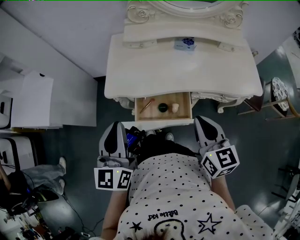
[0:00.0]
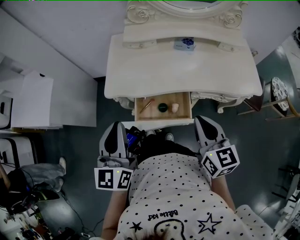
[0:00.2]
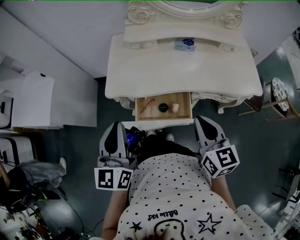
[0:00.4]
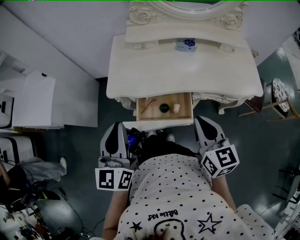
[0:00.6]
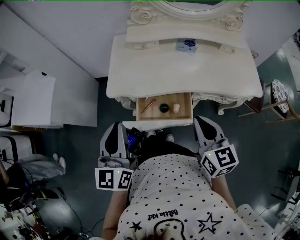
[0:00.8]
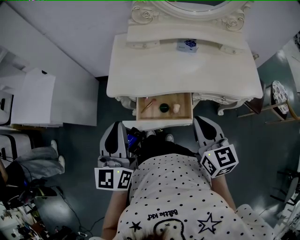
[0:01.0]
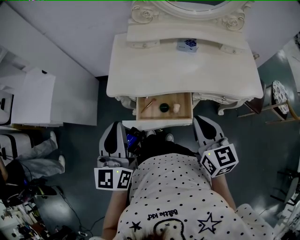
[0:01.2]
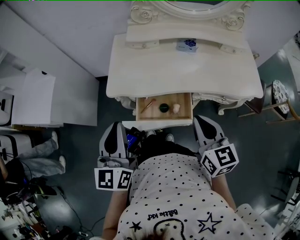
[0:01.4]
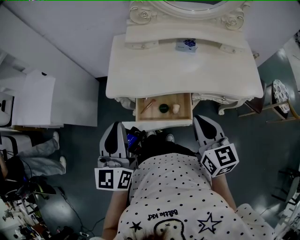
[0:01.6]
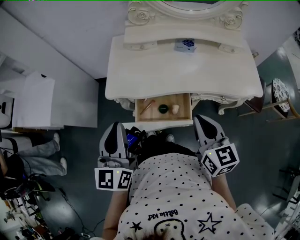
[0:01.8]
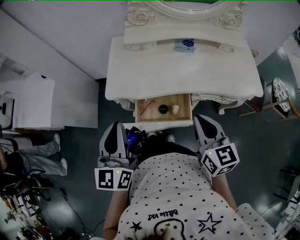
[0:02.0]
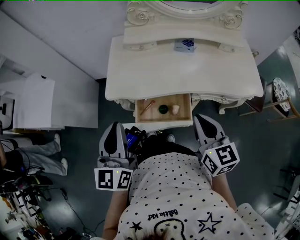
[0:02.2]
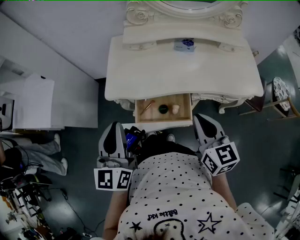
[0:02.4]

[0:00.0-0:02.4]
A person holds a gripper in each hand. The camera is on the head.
0.0 to 1.2 s: Both grippers stay put.
1.2 to 2.4 s: The grippers move only a little.

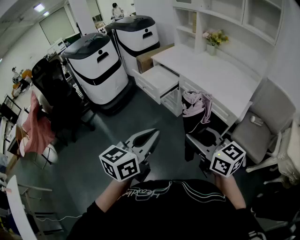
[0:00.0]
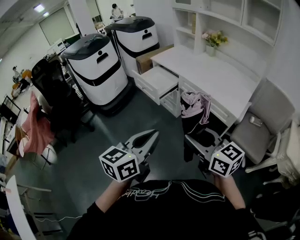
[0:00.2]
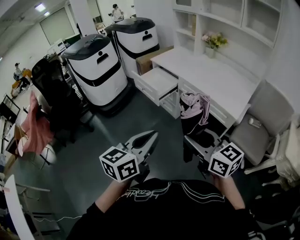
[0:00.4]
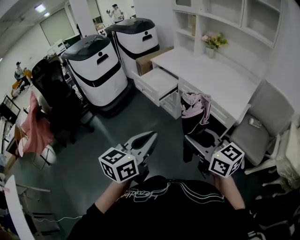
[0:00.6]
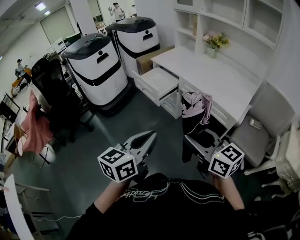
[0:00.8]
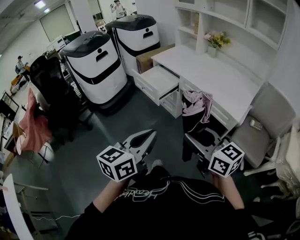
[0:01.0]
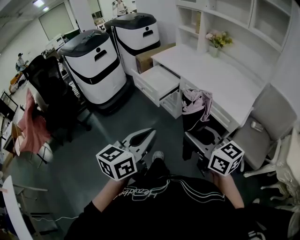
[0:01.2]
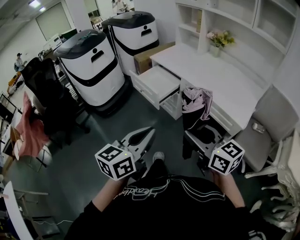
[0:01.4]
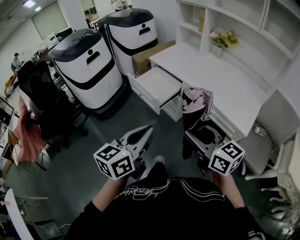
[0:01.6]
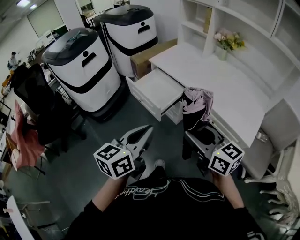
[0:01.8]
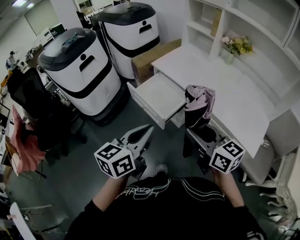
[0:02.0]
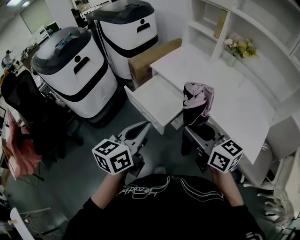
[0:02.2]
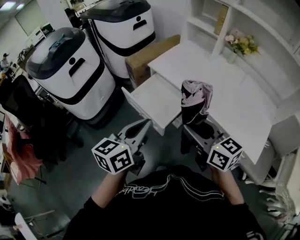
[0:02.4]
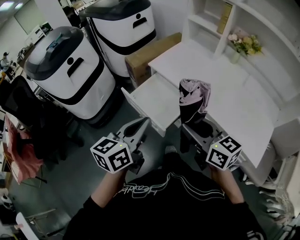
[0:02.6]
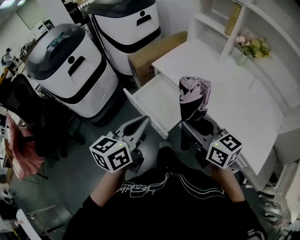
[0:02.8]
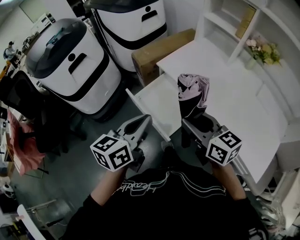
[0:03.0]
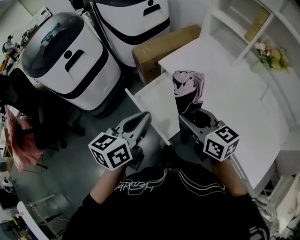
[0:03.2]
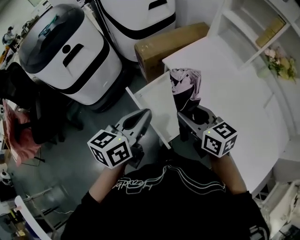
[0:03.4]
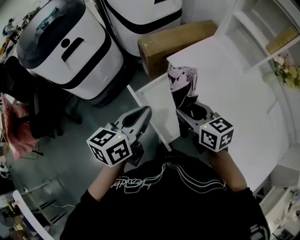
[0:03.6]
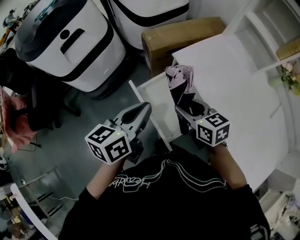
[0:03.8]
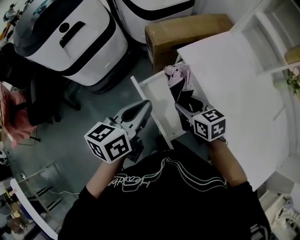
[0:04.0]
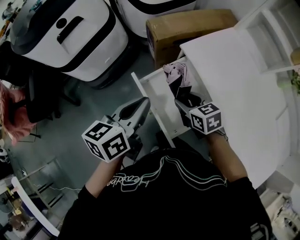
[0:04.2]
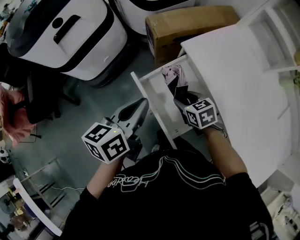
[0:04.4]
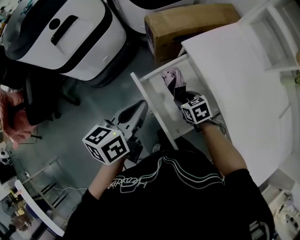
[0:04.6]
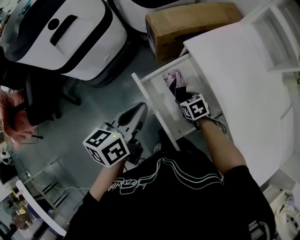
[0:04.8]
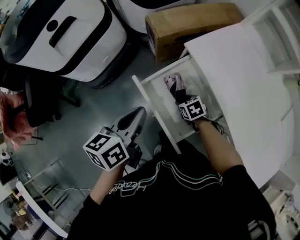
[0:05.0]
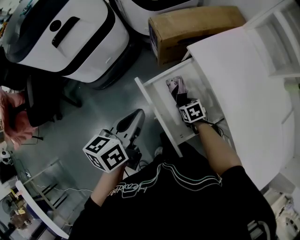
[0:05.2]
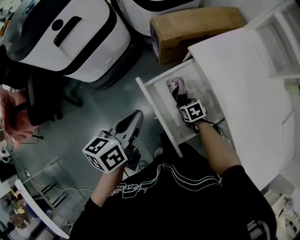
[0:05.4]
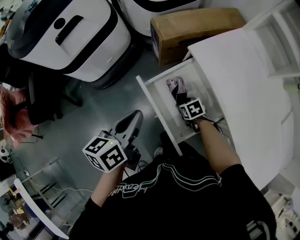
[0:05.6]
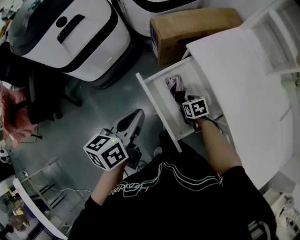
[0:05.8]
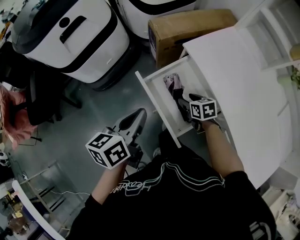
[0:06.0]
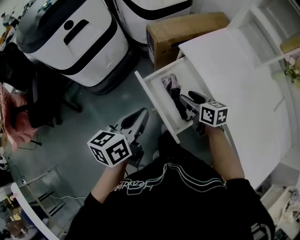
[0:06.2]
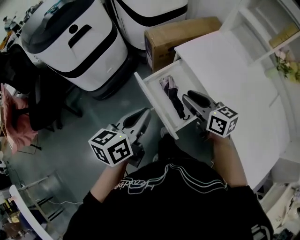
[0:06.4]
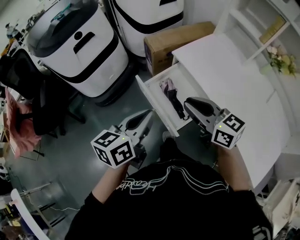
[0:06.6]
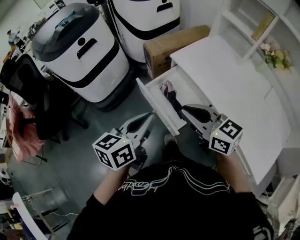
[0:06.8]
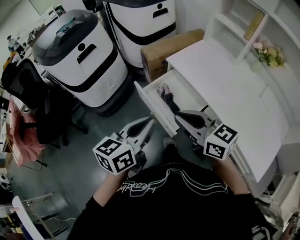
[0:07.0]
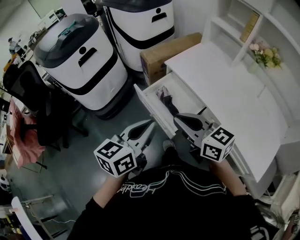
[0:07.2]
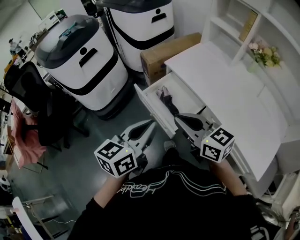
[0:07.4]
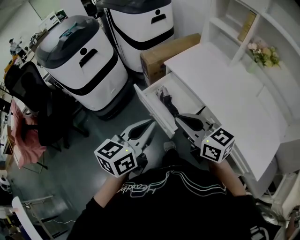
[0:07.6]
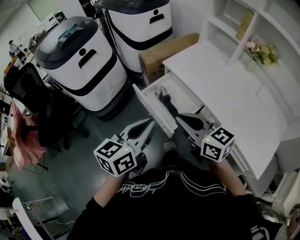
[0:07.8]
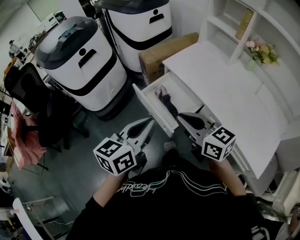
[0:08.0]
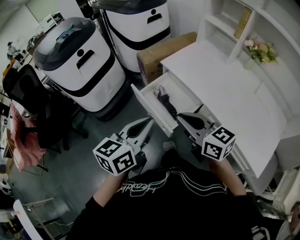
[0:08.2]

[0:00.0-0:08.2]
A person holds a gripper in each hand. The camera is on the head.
0.0 to 1.6 s: Both grippers travel together forward, approximately 20 cm.
1.6 to 3.2 s: The two grippers travel together, forward, approximately 50 cm.
3.2 to 5.0 s: The right gripper is displaced downward by approximately 40 cm, and angles its fingers downward, by approximately 50 degrees. Meanwhile the left gripper heads downward, forward and to the left, covering some 20 cm, and turns by approximately 20 degrees.
5.0 to 6.6 s: The left gripper is displaced backward and upward by roughly 20 cm, while the right gripper travels upward by about 40 cm, tips its fingers upward by roughly 50 degrees, and closes up.
6.6 to 8.2 s: Both grippers travel together backward and upward, some 15 cm.

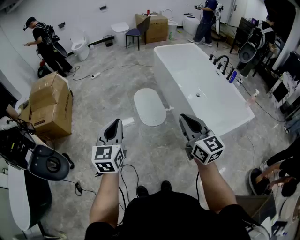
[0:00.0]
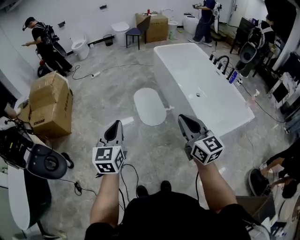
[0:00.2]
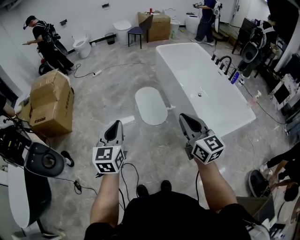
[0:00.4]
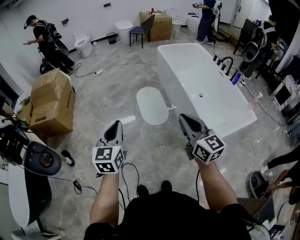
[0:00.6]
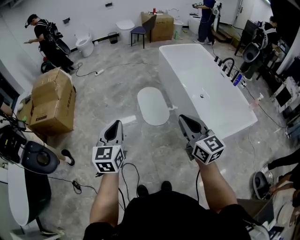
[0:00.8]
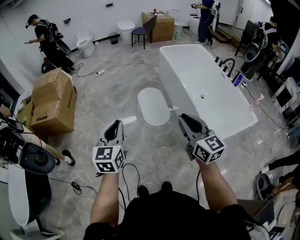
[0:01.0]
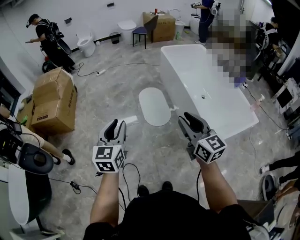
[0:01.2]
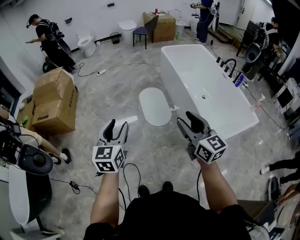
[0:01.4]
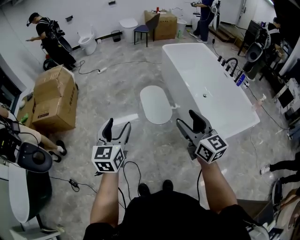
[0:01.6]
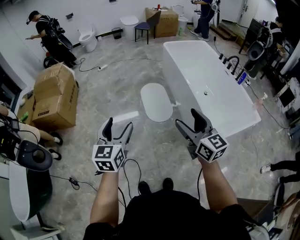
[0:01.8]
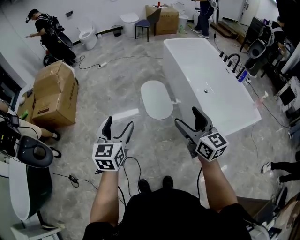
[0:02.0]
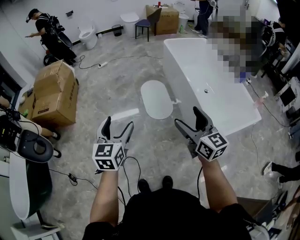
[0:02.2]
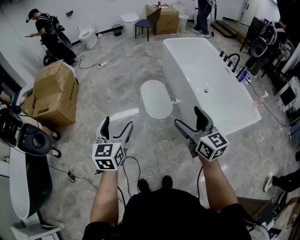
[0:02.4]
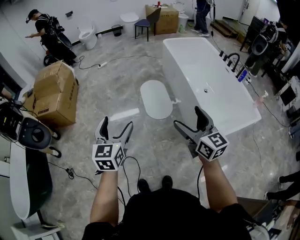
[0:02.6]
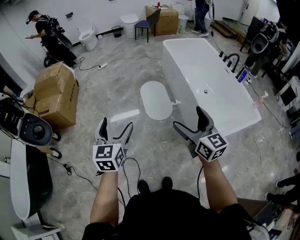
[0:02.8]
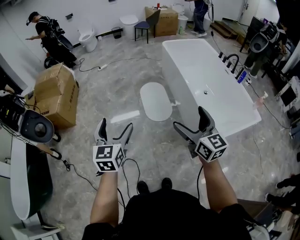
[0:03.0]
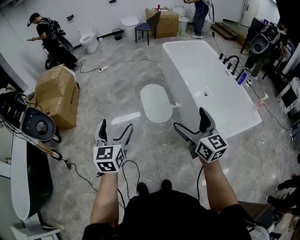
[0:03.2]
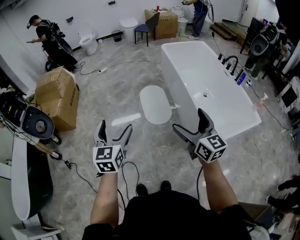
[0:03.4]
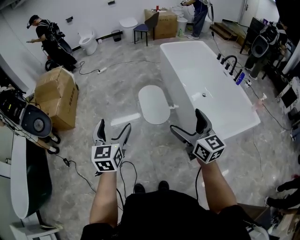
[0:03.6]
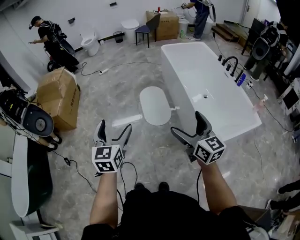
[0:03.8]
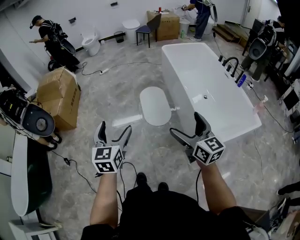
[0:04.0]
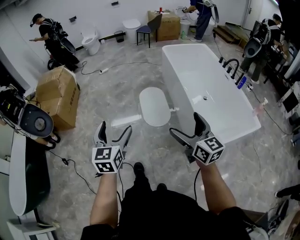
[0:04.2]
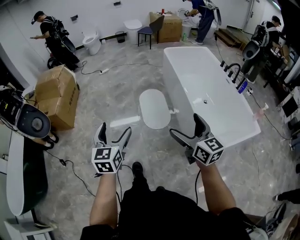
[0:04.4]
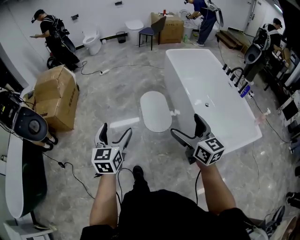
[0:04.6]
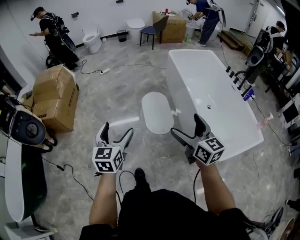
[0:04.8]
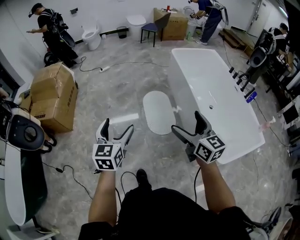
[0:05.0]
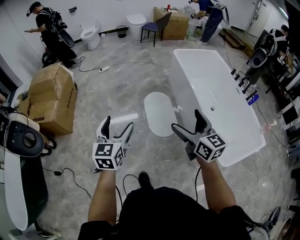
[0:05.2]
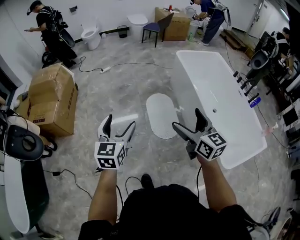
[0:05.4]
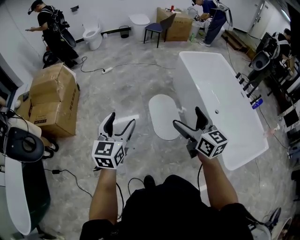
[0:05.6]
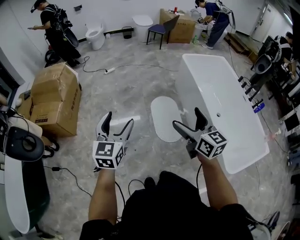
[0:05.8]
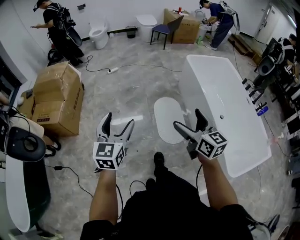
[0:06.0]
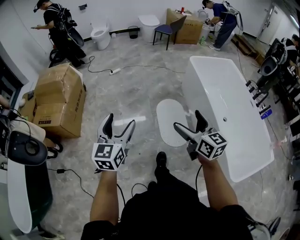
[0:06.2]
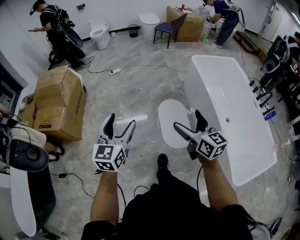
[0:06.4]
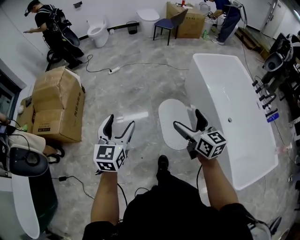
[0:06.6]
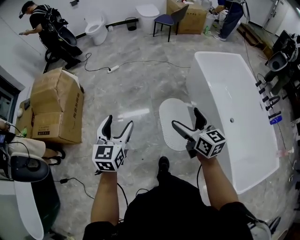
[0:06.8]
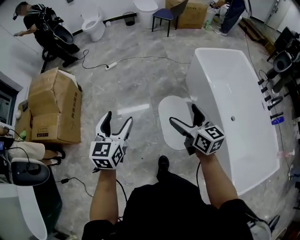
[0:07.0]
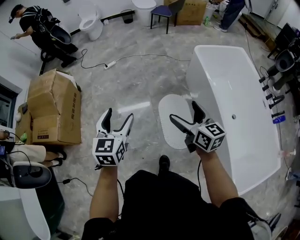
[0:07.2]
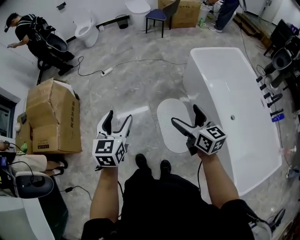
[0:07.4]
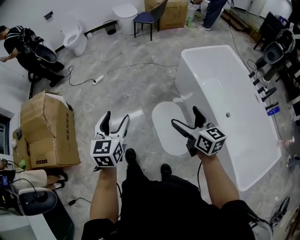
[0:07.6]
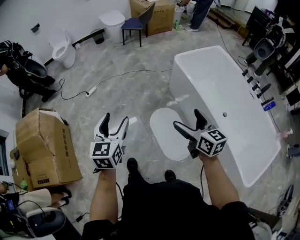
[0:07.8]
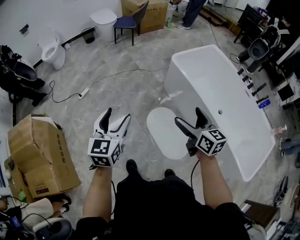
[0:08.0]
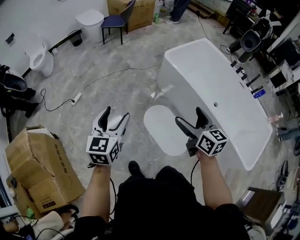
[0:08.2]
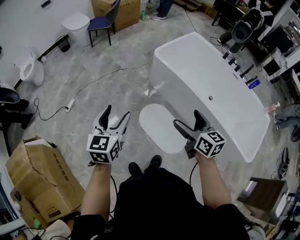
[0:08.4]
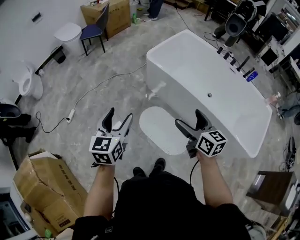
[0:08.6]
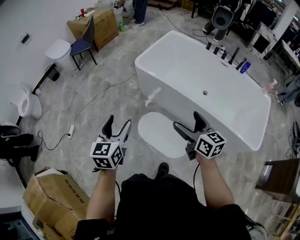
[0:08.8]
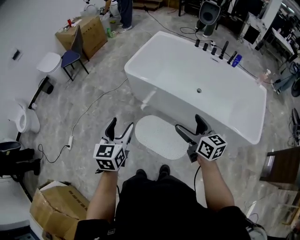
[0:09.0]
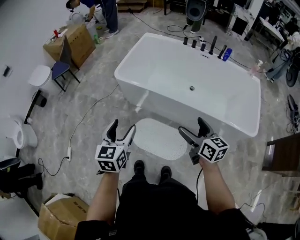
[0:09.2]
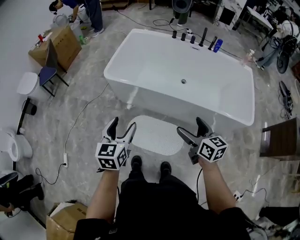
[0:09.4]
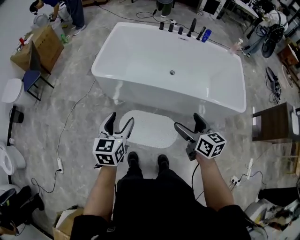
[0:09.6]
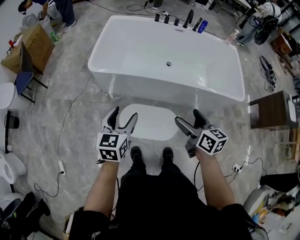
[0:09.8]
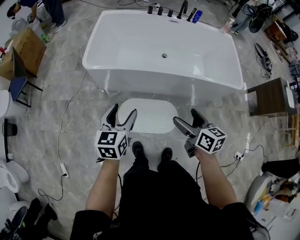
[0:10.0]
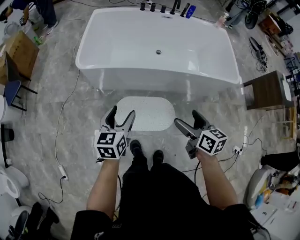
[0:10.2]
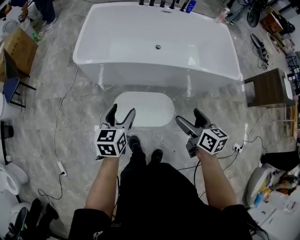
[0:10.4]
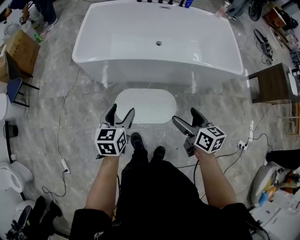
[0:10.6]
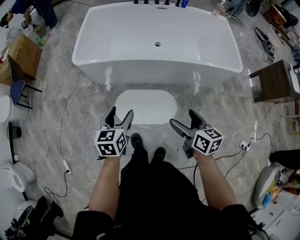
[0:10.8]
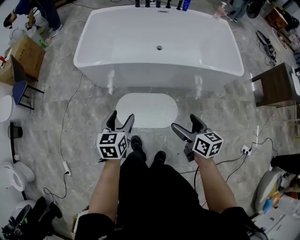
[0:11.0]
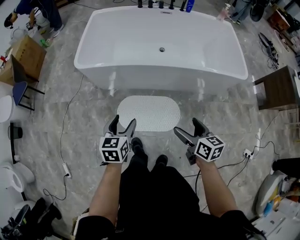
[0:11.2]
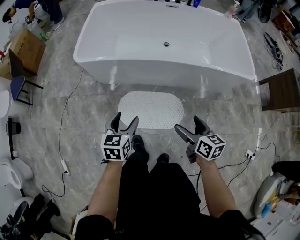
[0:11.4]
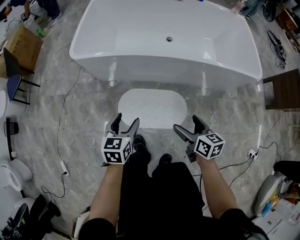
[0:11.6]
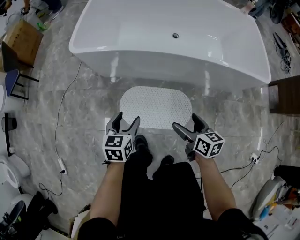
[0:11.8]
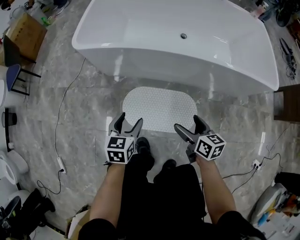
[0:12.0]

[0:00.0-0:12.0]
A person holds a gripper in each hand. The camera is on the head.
0.0 to 1.6 s: The left gripper opens up. The right gripper opens.
1.6 to 3.0 s: The left gripper opens its fingers; the right gripper opens.
3.0 to 4.4 s: The right gripper moves approximately 5 cm.
4.4 to 6.0 s: The two grippers go about 30 cm forward and to the left.
6.0 to 7.6 s: The grippers both shift forward by approximately 30 cm.
7.6 to 9.0 s: The right gripper moves about 10 cm, and changes its angle by roughly 40 degrees; the left gripper shifts by roughly 25 cm, and swivels roughly 40 degrees.
9.0 to 10.4 s: The right gripper travels downward by some 10 cm, and rotates some 40 degrees. The left gripper heads downward, covering roughly 15 cm, and rotates some 30 degrees.
10.4 to 12.0 s: Both grippers travel together downward, roughly 25 cm.

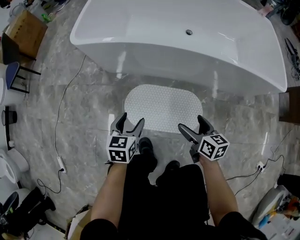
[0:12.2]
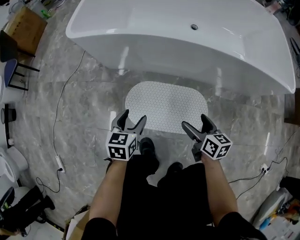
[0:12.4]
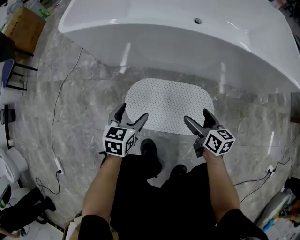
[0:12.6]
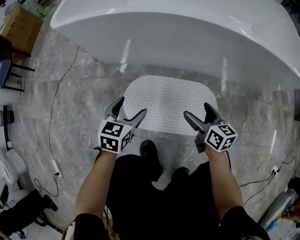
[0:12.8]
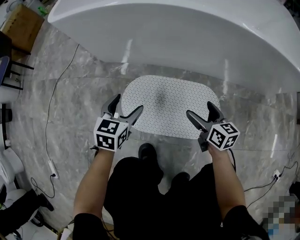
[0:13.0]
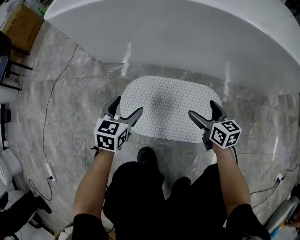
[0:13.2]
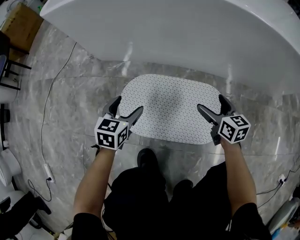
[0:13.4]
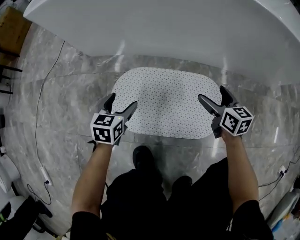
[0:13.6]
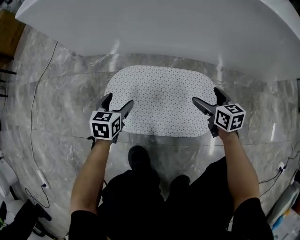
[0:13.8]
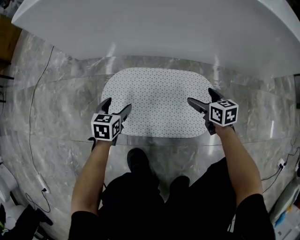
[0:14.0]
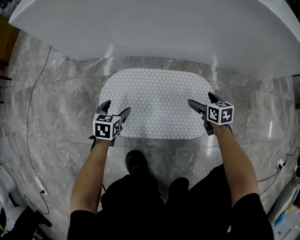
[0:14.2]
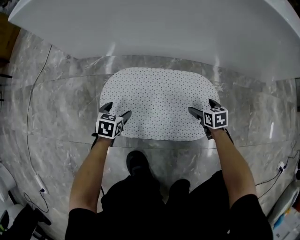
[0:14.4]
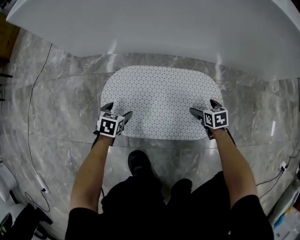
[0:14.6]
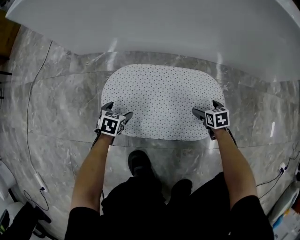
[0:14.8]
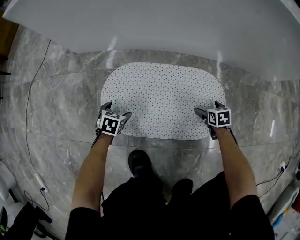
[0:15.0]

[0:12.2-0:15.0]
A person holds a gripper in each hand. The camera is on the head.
12.2 to 13.6 s: The grippers both shift downward by roughly 30 cm.
13.6 to 15.0 s: Both grippers travel together downward, approximately 20 cm. The left gripper turns by approximately 30 degrees. Meanwhile the right gripper tilts its fingers approximately 30 degrees downward.
